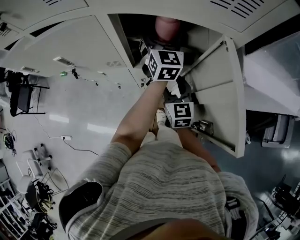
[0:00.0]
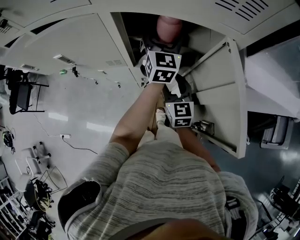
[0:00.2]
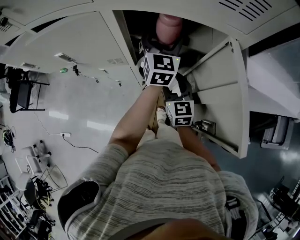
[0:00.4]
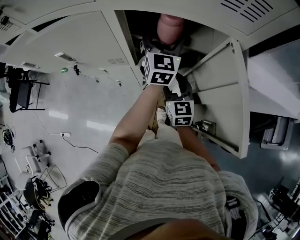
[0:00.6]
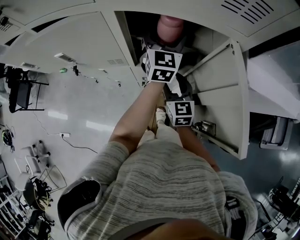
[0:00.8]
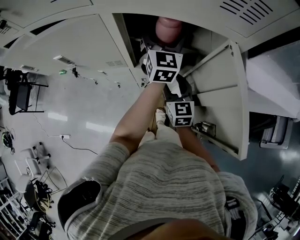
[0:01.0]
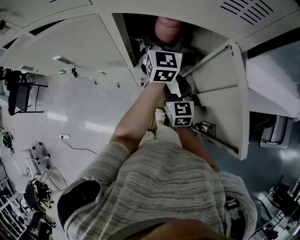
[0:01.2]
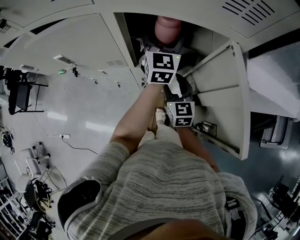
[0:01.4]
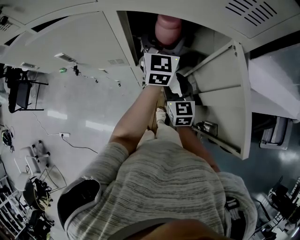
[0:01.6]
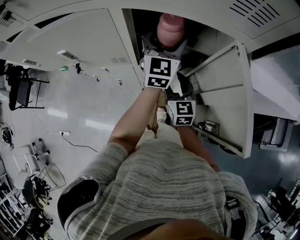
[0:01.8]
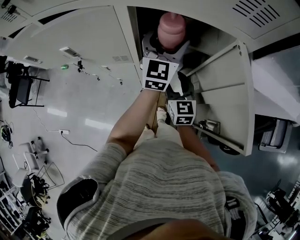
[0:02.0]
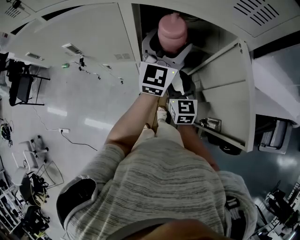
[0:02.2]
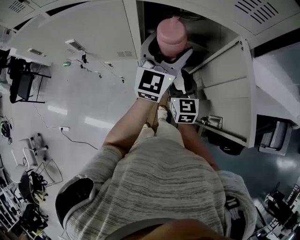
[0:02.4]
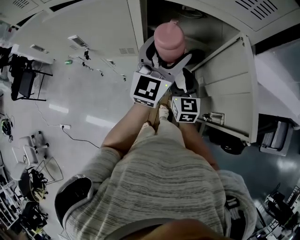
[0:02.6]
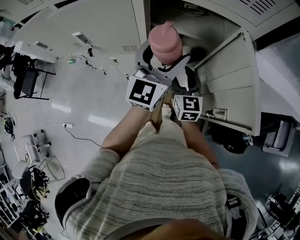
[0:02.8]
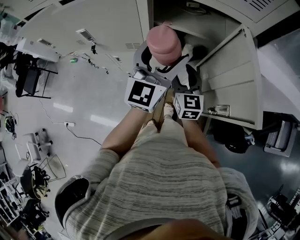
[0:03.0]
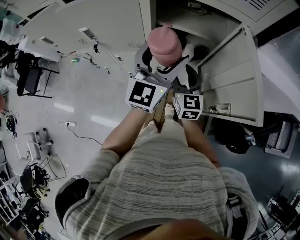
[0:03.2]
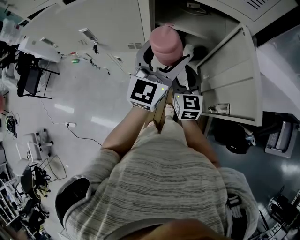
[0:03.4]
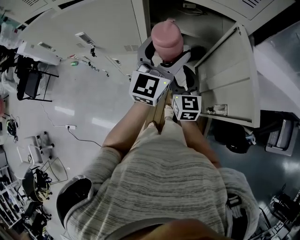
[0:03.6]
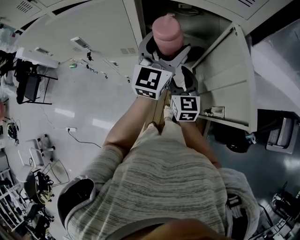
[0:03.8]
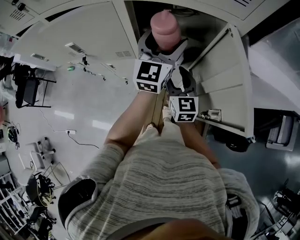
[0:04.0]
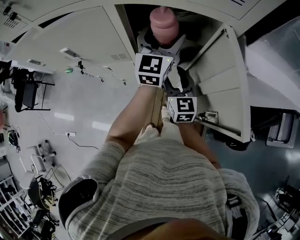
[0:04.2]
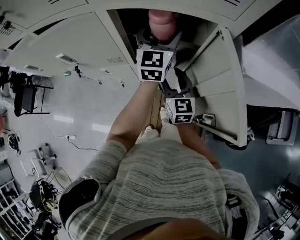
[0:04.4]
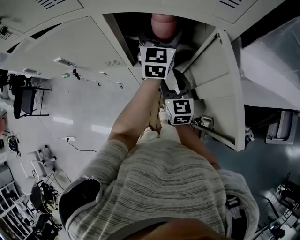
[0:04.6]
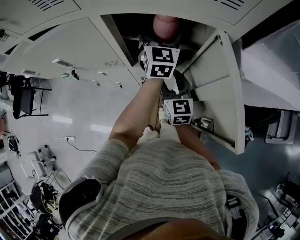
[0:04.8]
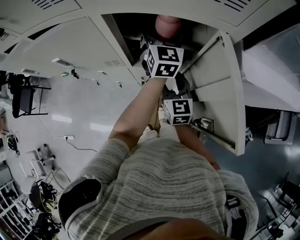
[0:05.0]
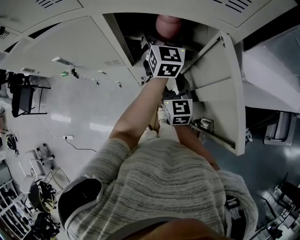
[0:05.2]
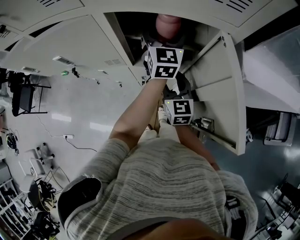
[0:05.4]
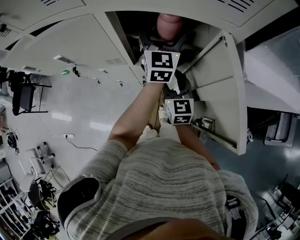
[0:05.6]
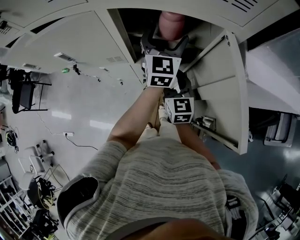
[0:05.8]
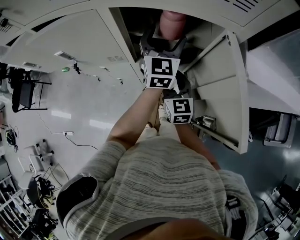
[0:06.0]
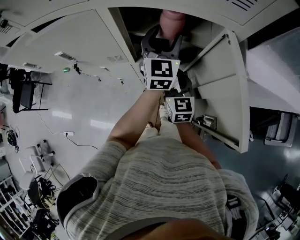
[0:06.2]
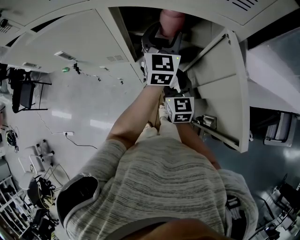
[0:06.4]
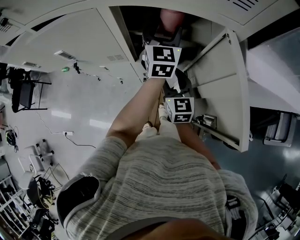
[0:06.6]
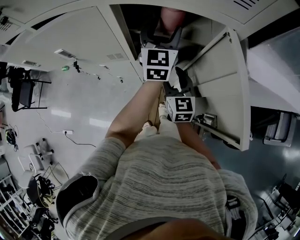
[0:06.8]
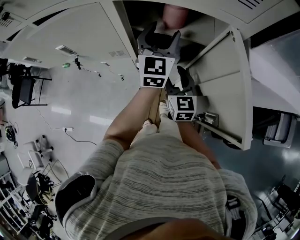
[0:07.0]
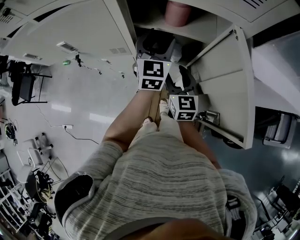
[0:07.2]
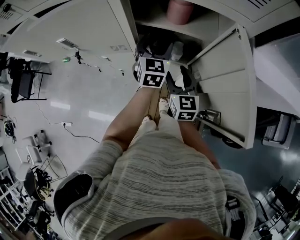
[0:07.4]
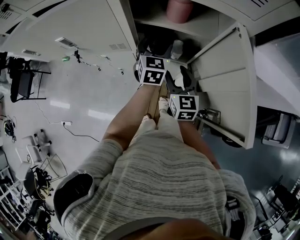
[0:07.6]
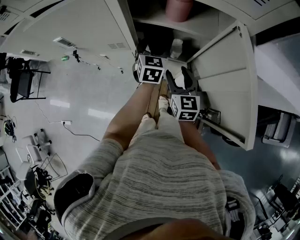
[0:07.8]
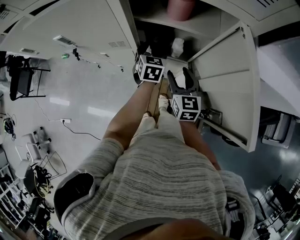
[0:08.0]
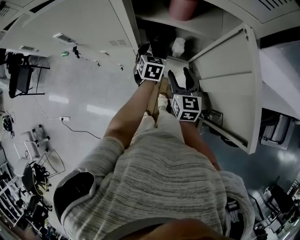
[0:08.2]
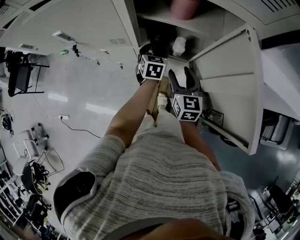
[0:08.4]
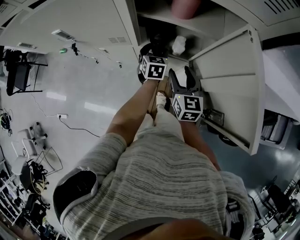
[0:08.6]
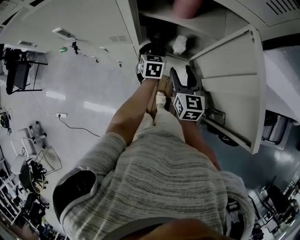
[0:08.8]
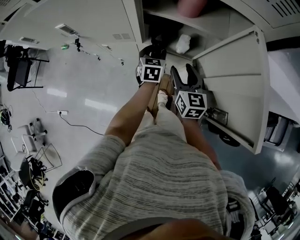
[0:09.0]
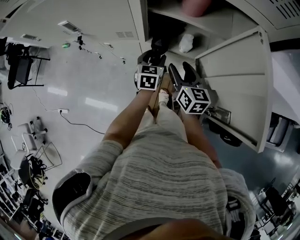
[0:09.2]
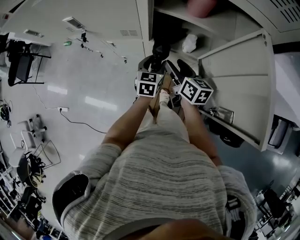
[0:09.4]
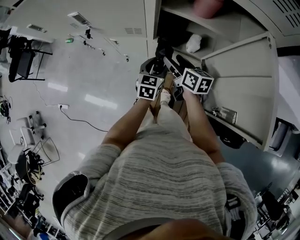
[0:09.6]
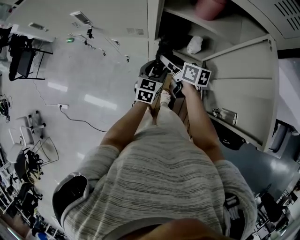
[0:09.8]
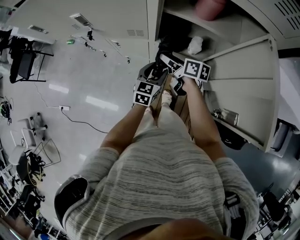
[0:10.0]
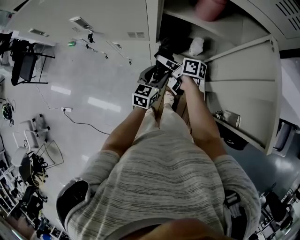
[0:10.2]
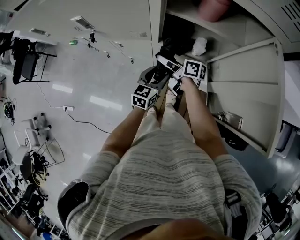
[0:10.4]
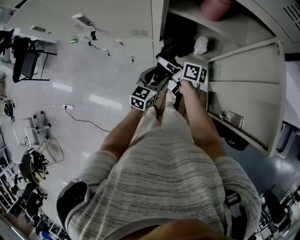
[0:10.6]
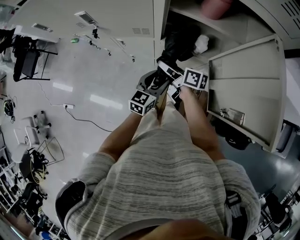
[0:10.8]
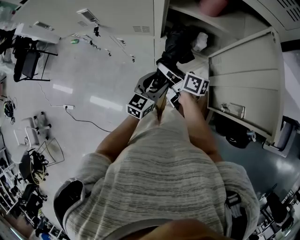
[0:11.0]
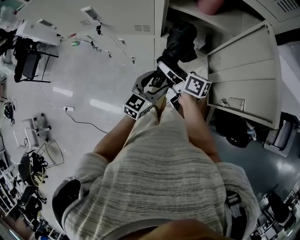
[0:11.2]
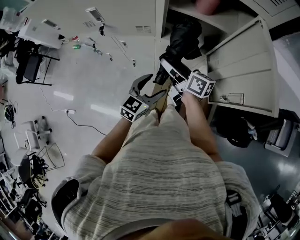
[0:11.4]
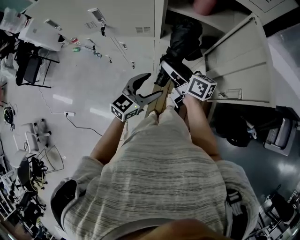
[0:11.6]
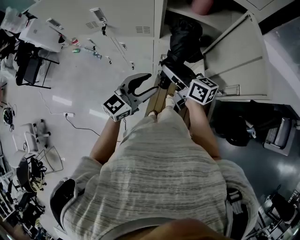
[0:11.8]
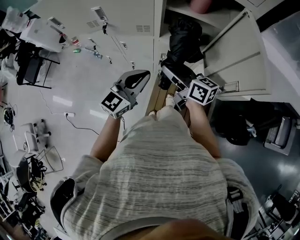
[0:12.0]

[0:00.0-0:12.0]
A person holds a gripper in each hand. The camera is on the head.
0:00.0 to 0:01.6: There are only small adjustments of the grippers.
0:01.6 to 0:03.0: The right gripper ends up about 5 cm from where it was; the left gripper is displaced backward by roughly 15 cm.
0:03.0 to 0:04.4: The left gripper is displaced forward by some 15 cm.
0:04.4 to 0:06.0: The grippers move only a little.
0:06.0 to 0:07.6: The left gripper goes roughly 10 cm downward.
0:07.6 to 0:09.0: The left gripper moves downward, approximately 15 cm.
0:09.0 to 0:10.4: The left gripper is displaced backward by some 10 cm, and rotates about 20 degrees, while the right gripper moves to the left, downward and forward, roughly 15 cm, and turns by roughly 60 degrees.
0:10.4 to 0:12.0: The grippers both shift upward and backward by some 20 cm. The right gripper rotates roughly 30 degrees; the left gripper rotates approximately 30 degrees, and closes its fingers.

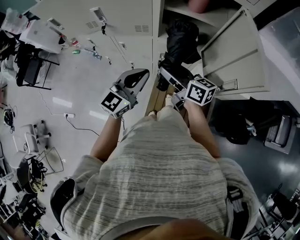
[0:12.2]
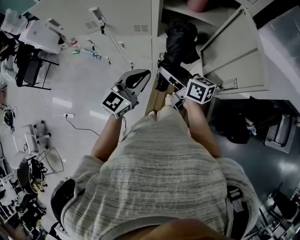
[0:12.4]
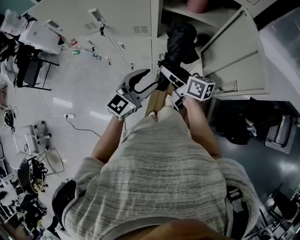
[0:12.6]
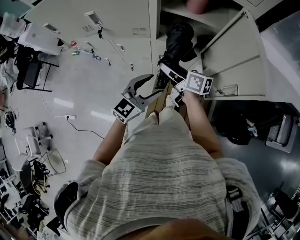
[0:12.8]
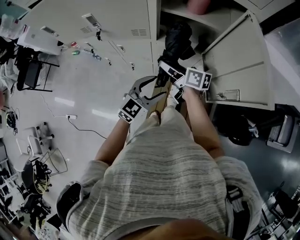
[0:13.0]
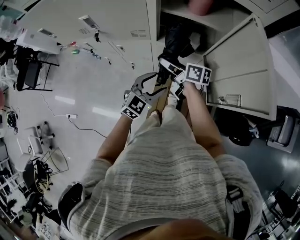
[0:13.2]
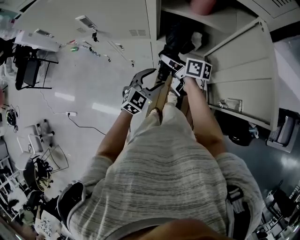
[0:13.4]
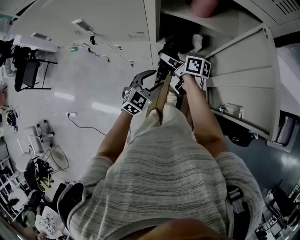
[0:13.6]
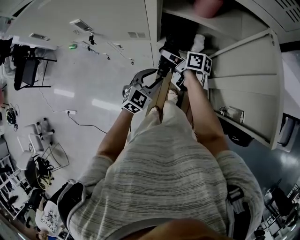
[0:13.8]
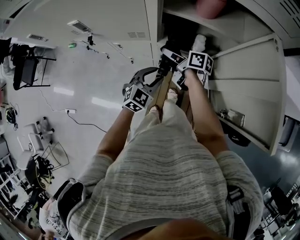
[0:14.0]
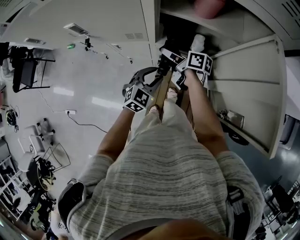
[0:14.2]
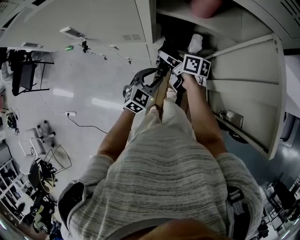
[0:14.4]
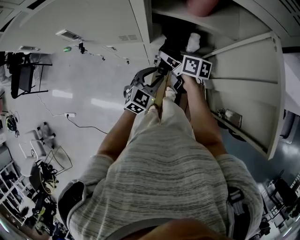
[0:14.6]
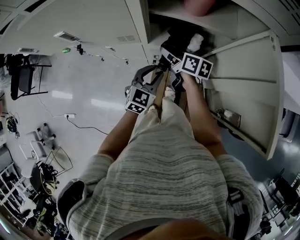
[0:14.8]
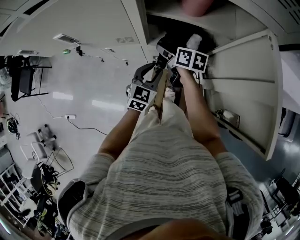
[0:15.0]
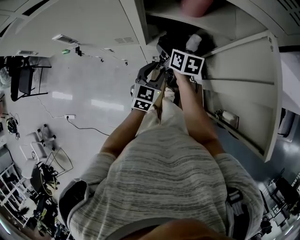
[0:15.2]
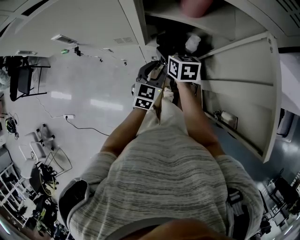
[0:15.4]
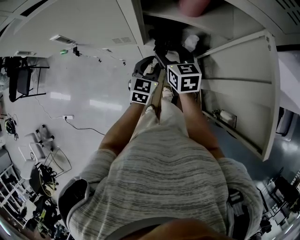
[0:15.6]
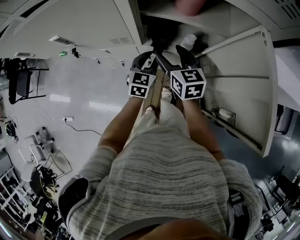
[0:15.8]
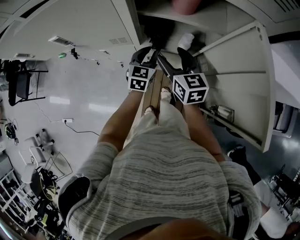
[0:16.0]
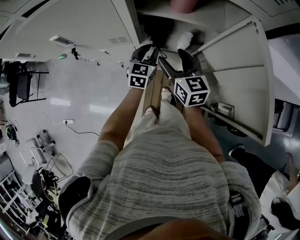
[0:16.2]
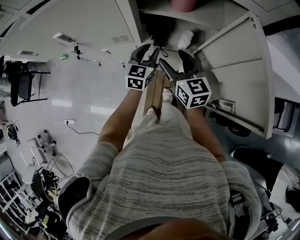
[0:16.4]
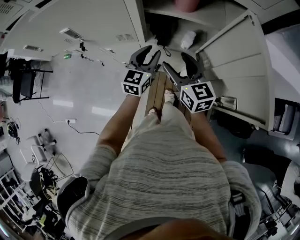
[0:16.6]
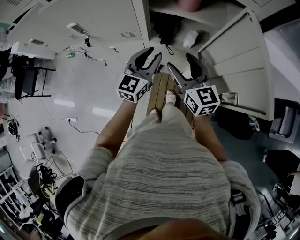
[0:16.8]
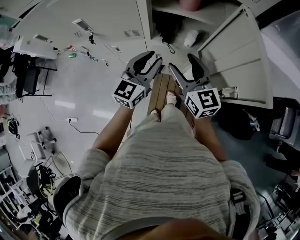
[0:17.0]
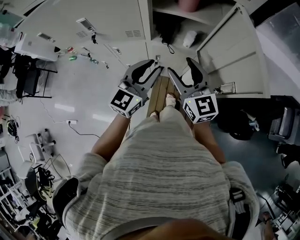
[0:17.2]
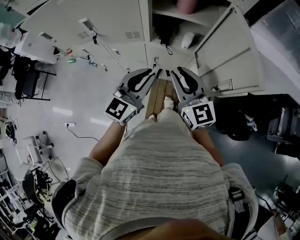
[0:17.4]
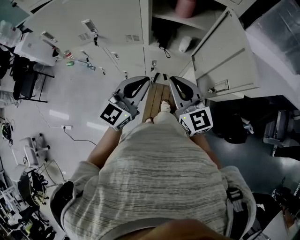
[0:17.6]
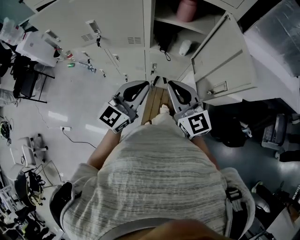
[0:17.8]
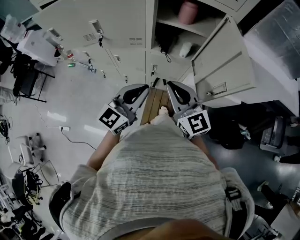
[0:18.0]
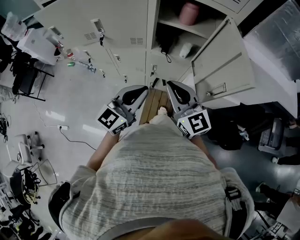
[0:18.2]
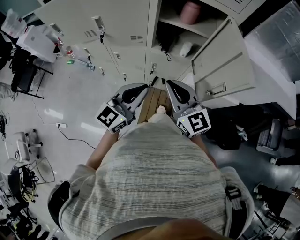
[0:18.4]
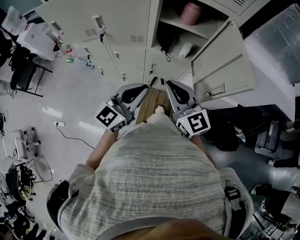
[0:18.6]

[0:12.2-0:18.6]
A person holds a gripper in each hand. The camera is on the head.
0:12.2 to 0:13.8: The right gripper travels forward and downward by roughly 20 cm, and changes its angle by some 30 degrees; the left gripper moves downward and forward, some 20 cm, turns by some 30 degrees, and opens up.
0:13.8 to 0:15.4: The right gripper changes place by approximately 5 cm, and changes its angle by about 50 degrees, while the left gripper moves forward, about 5 cm, and turns by some 20 degrees.
0:15.4 to 0:17.0: Both grippers travel together upward and backward, roughly 20 cm. The left gripper changes its angle by roughly 20 degrees, while the right gripper swivels roughly 30 degrees.
0:17.0 to 0:18.6: Both grippers travel together backward, roughly 15 cm. The right gripper closes its fingers.

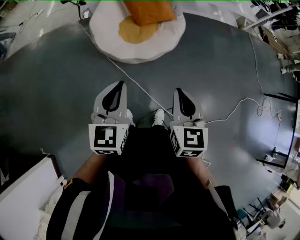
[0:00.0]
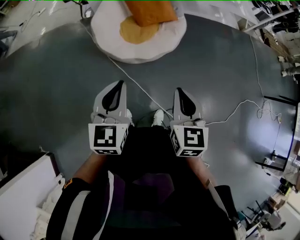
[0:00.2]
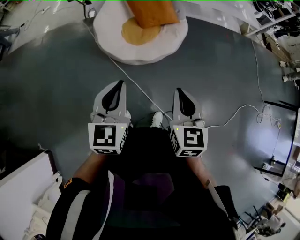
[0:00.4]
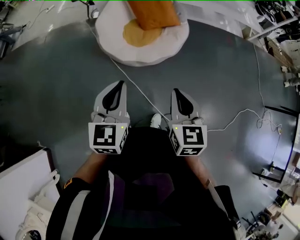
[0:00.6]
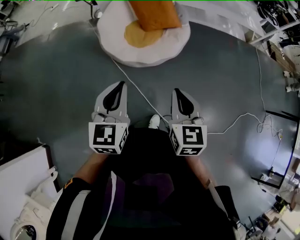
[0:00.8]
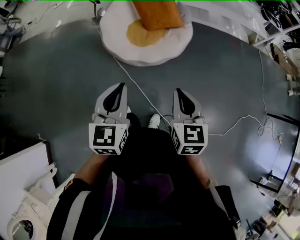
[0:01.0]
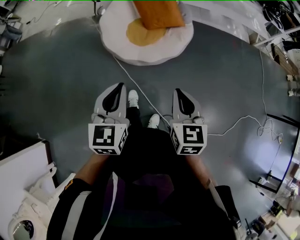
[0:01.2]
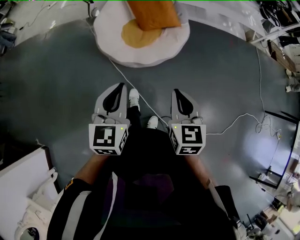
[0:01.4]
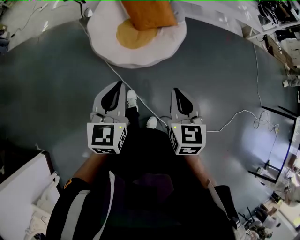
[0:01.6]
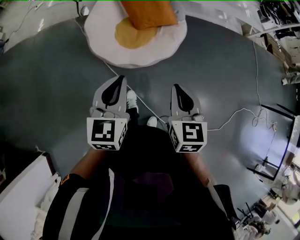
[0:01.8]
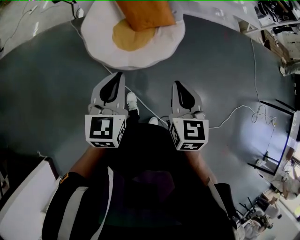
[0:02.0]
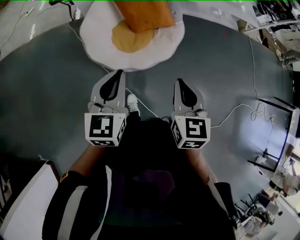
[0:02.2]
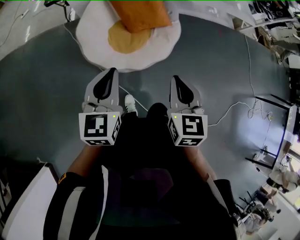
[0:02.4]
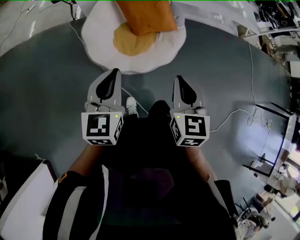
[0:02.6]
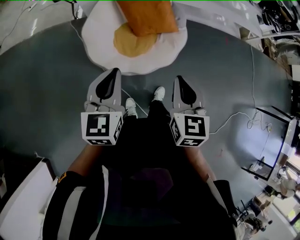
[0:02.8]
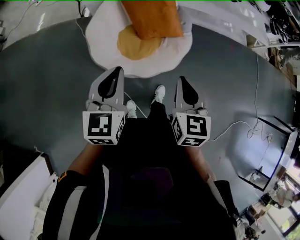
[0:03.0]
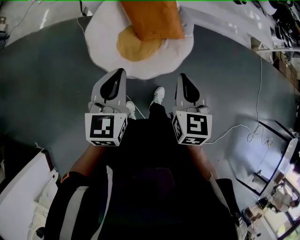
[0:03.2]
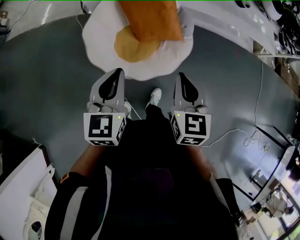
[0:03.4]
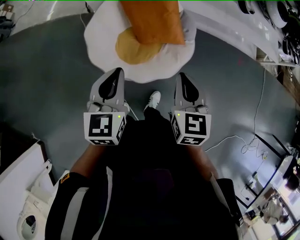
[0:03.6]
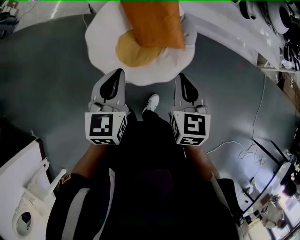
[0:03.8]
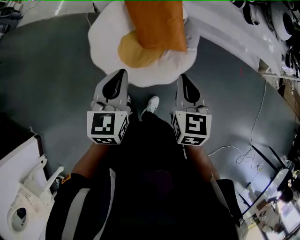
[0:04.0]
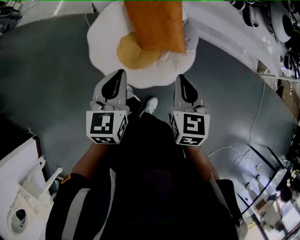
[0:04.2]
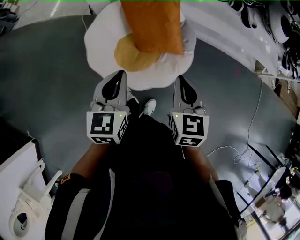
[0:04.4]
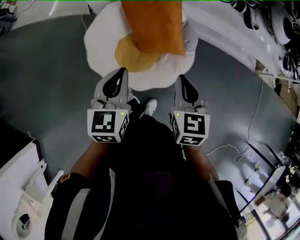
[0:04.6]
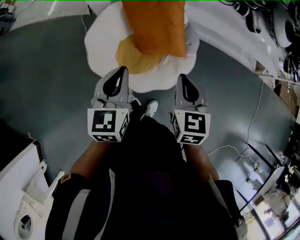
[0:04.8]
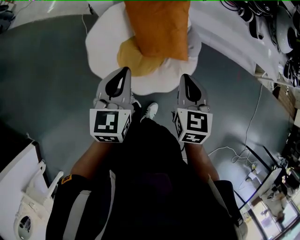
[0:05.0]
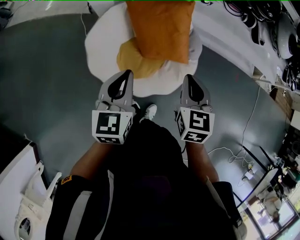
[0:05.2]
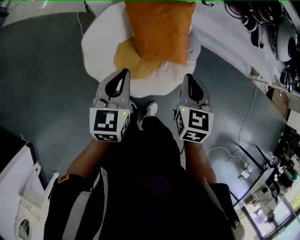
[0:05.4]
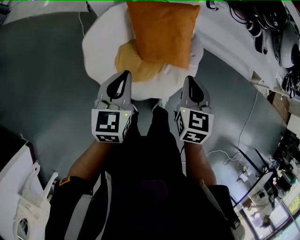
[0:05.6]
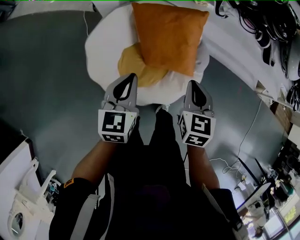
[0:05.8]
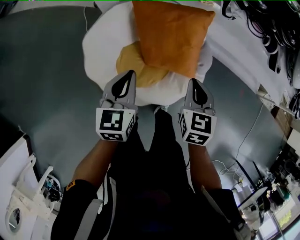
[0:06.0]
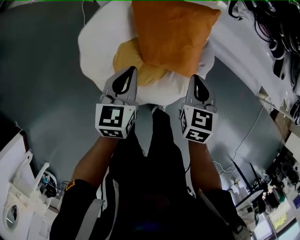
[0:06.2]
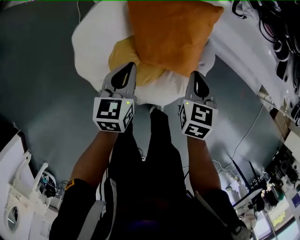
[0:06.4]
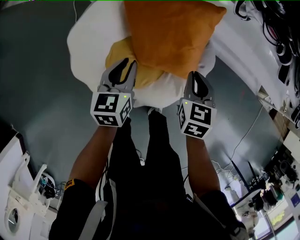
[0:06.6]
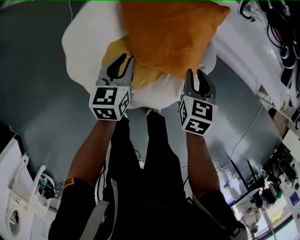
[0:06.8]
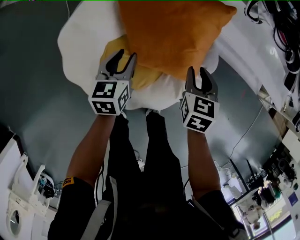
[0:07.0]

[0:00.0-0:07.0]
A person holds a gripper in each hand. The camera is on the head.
0:00.0 to 0:01.4: Both grippers move to the right, approximately 5 cm.
0:01.4 to 0:02.8: Both grippers travel together forward, approximately 20 cm.
0:02.8 to 0:04.2: Both grippers travel together forward and to the right, approximately 20 cm.
0:04.2 to 0:05.6: The right gripper goes roughly 15 cm forward. The left gripper travels forward, downward and to the left by roughly 20 cm.
0:05.6 to 0:07.0: The two grippers go approximately 30 cm downward and forward. The left gripper opens its fingers, while the right gripper opens up.
